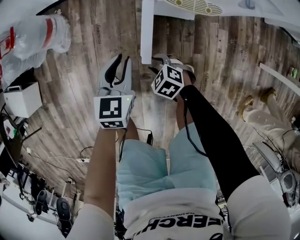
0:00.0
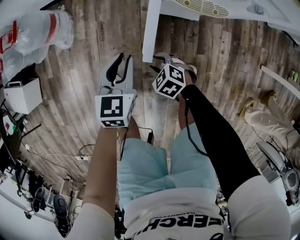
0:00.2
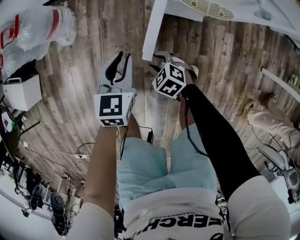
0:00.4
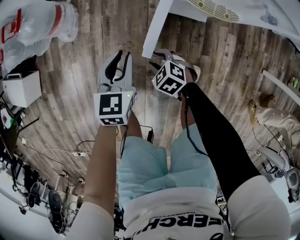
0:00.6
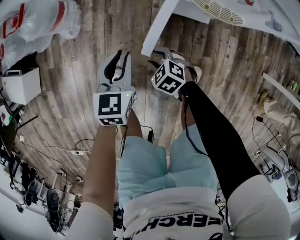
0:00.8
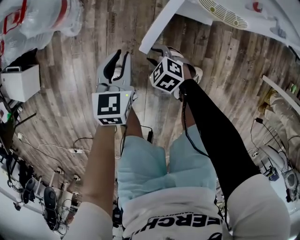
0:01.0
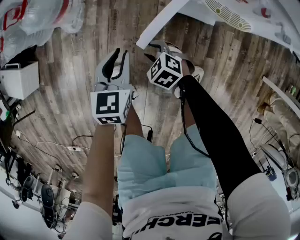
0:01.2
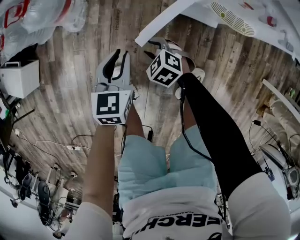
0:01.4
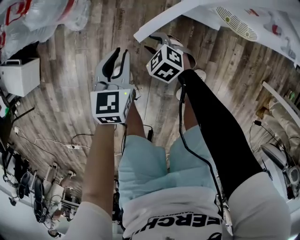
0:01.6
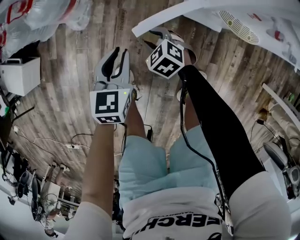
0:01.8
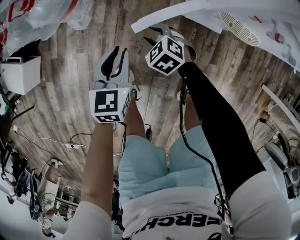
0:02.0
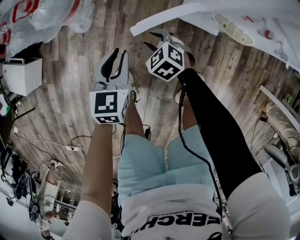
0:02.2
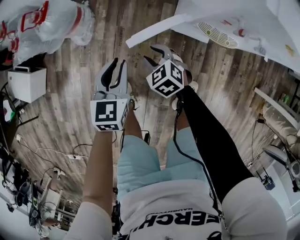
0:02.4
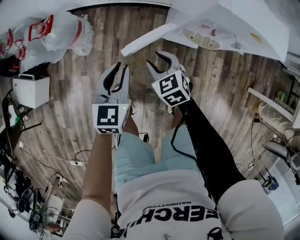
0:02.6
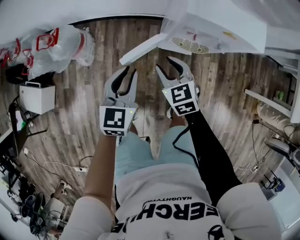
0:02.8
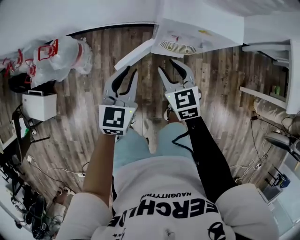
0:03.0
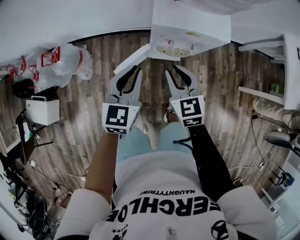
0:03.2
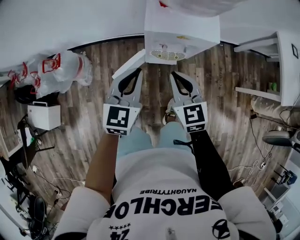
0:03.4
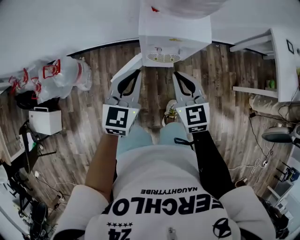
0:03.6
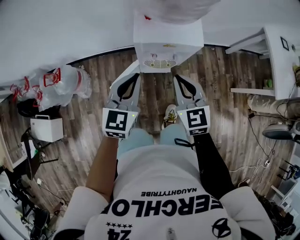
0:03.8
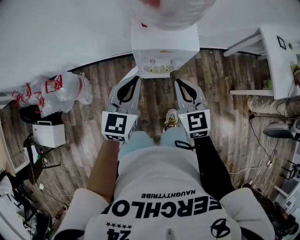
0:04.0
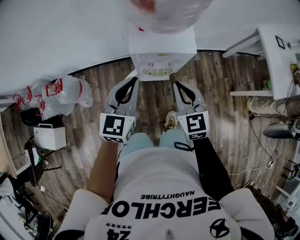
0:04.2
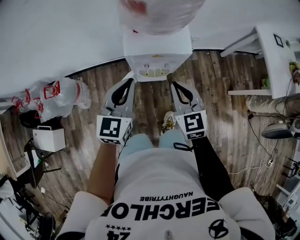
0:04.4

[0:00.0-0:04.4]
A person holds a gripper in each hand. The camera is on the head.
0:00.0 to 0:01.4: The right gripper travels forward and to the left by approximately 15 cm; the left gripper travels to the left and forward by approximately 15 cm.
0:01.4 to 0:03.0: Both grippers travel together upward, about 35 cm. The right gripper turns by roughly 50 degrees, while the left gripper turns by approximately 20 degrees.
0:03.0 to 0:04.4: Both grippers move upward and to the right, approximately 20 cm. The right gripper closes its fingers.

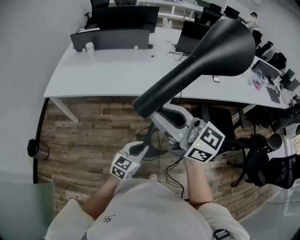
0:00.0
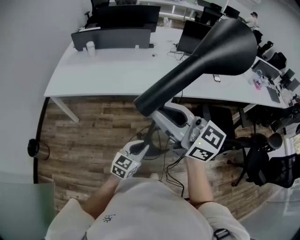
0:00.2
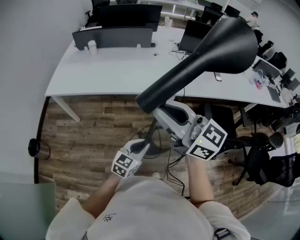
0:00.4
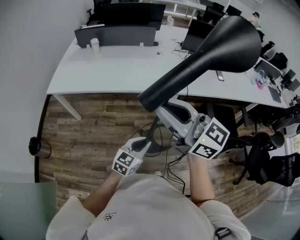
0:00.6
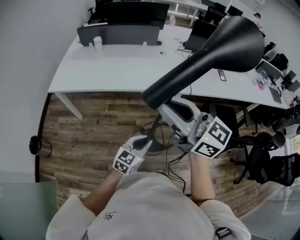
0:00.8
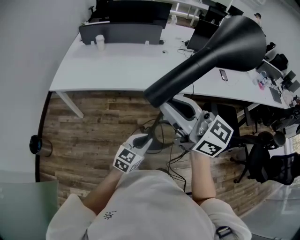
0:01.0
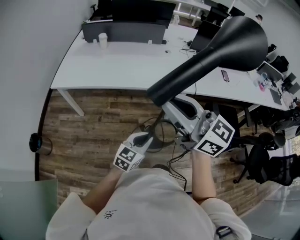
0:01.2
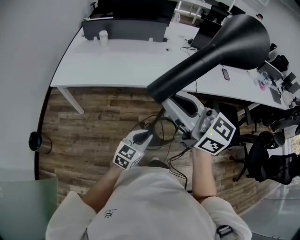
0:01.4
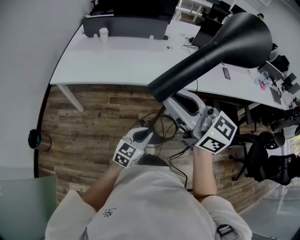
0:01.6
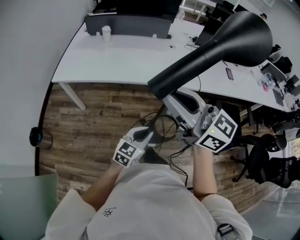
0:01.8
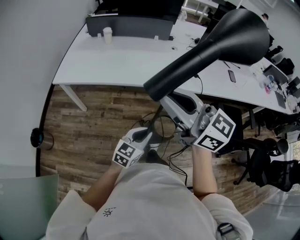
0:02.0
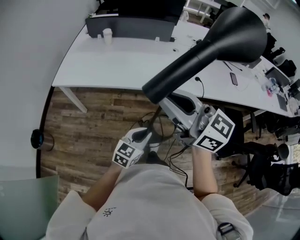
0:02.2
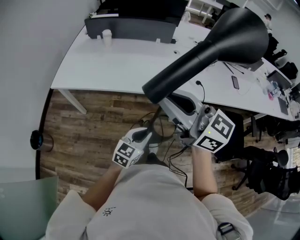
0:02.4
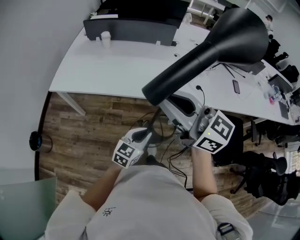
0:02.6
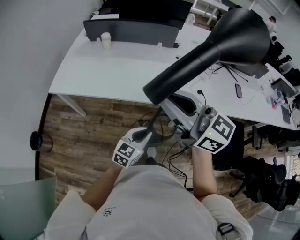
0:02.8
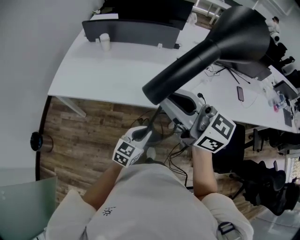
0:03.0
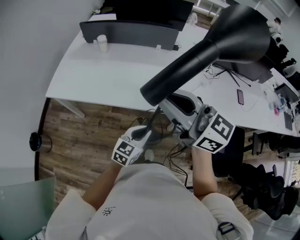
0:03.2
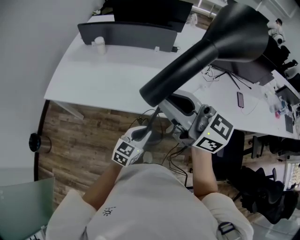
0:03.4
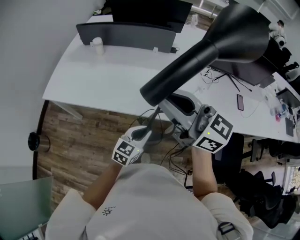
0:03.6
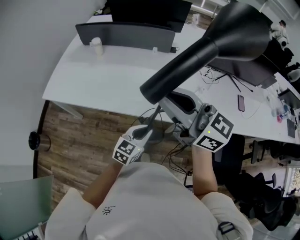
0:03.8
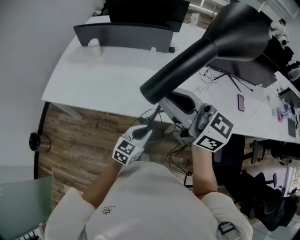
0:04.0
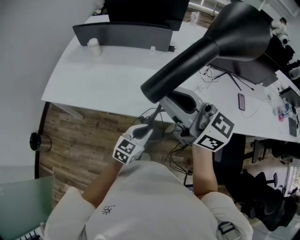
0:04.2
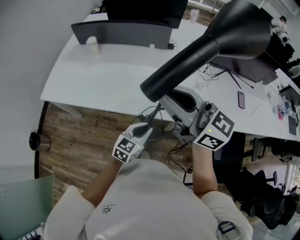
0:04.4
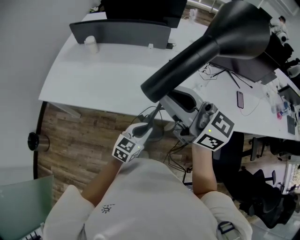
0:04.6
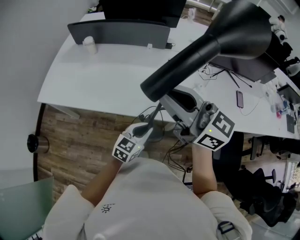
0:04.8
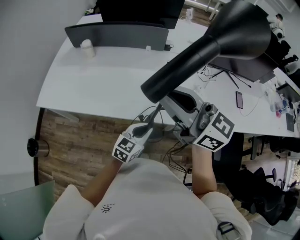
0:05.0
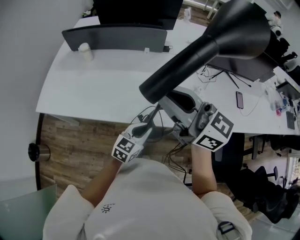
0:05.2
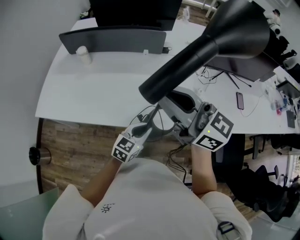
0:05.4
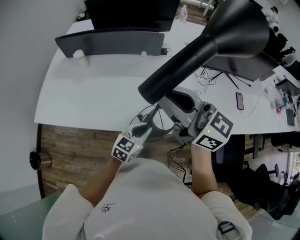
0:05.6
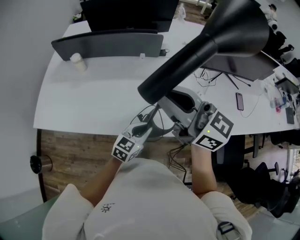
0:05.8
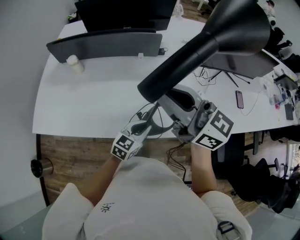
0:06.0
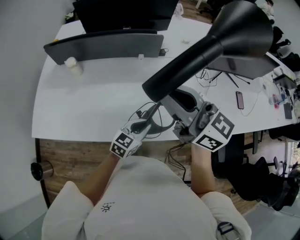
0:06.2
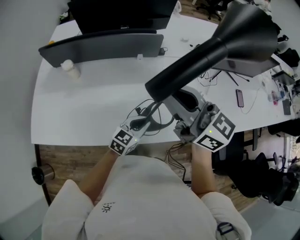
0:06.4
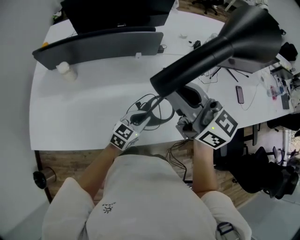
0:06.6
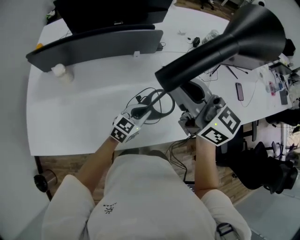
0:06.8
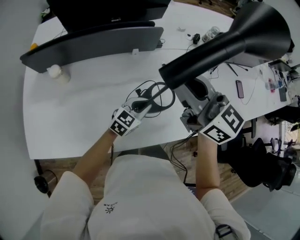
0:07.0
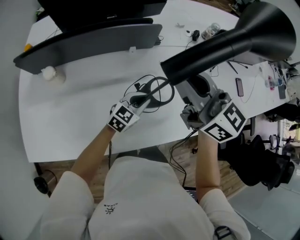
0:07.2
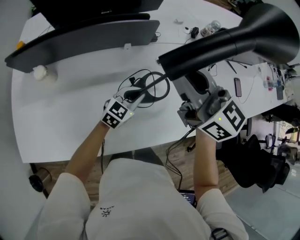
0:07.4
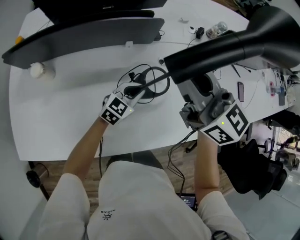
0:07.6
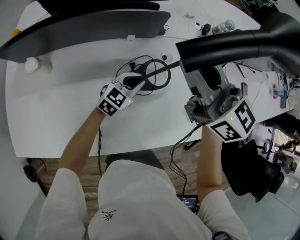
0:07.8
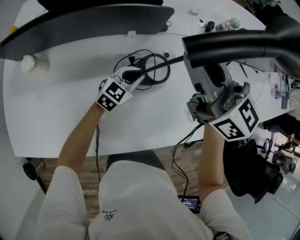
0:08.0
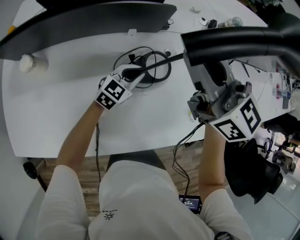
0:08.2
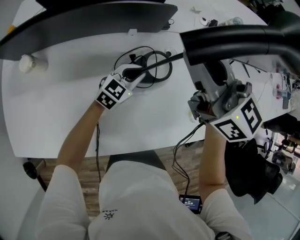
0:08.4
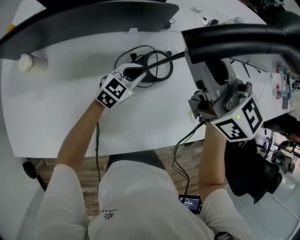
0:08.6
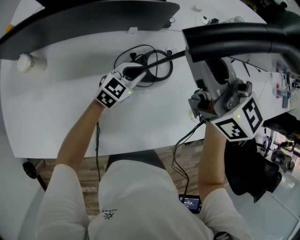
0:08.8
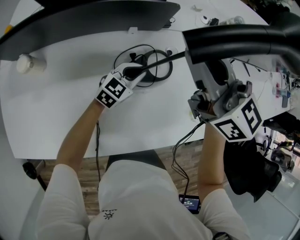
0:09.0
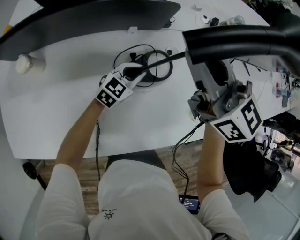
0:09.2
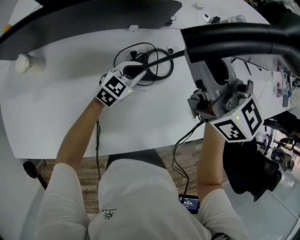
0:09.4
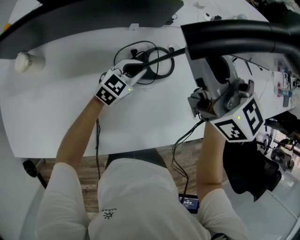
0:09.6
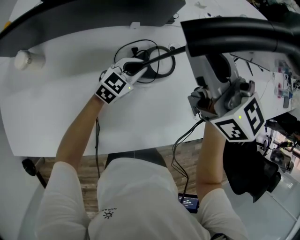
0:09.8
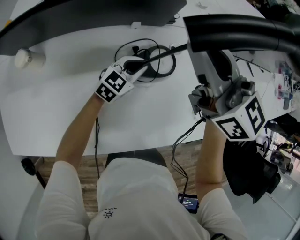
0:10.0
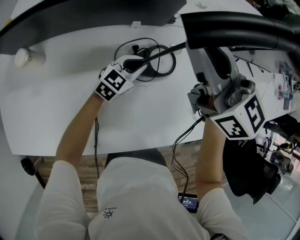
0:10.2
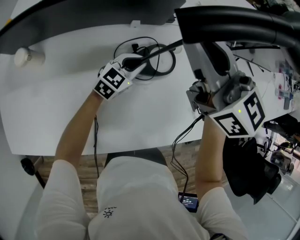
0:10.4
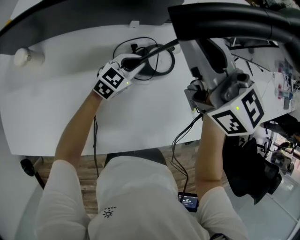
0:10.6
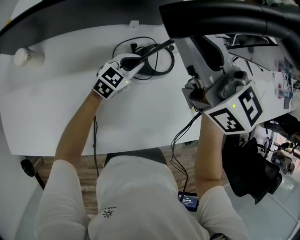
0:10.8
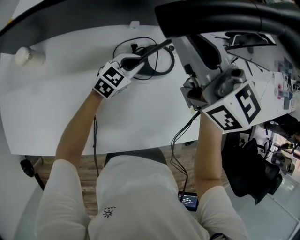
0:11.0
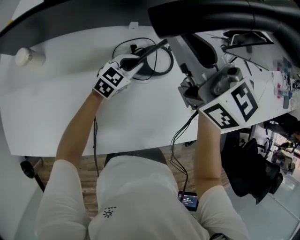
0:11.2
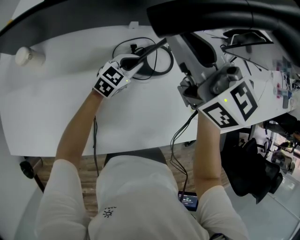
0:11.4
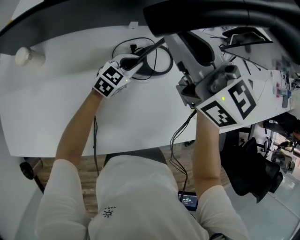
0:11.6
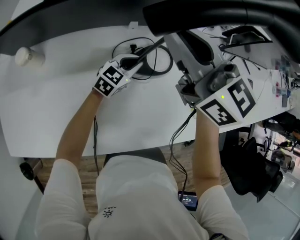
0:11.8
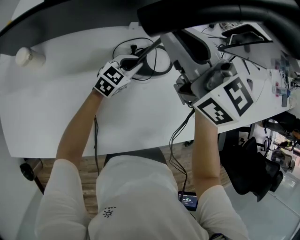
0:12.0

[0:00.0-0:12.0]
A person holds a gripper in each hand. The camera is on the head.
0:00.0 to 0:01.6: Both grippers move to the left, about 15 cm.
0:01.6 to 0:03.0: The grippers both shift forward by approximately 20 cm.
0:03.0 to 0:04.4: The two grippers go approximately 15 cm to the right and forward.
0:04.4 to 0:06.0: Both grippers move forward, approximately 15 cm.
0:06.0 to 0:07.6: The grippers both shift forward by about 25 cm. The right gripper turns by some 20 degrees.
0:07.6 to 0:09.0: The two grippers go about 5 cm forward.
0:09.0 to 0:12.0: The grippers stay close to where they were, moving slightly.

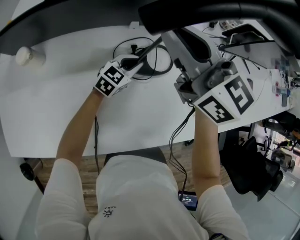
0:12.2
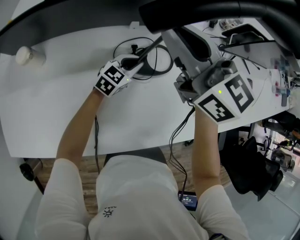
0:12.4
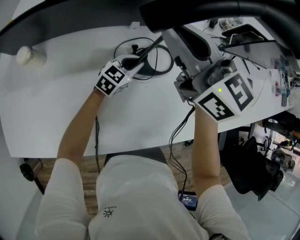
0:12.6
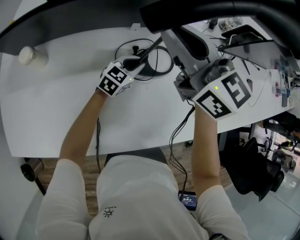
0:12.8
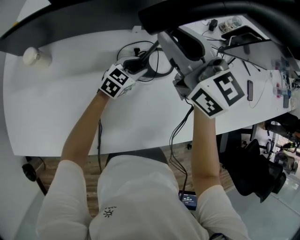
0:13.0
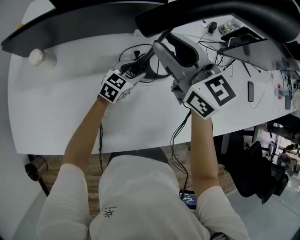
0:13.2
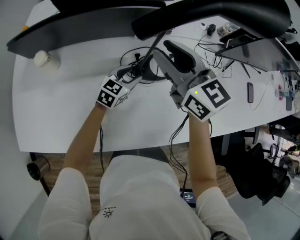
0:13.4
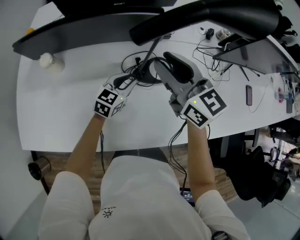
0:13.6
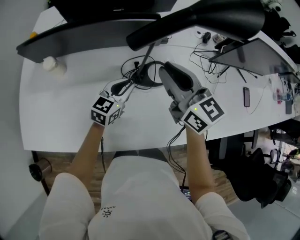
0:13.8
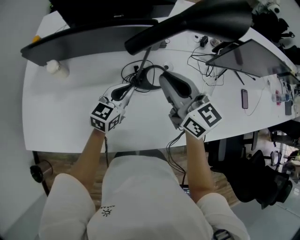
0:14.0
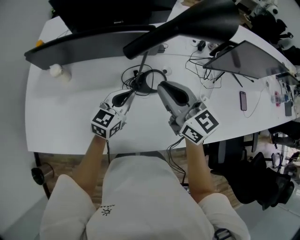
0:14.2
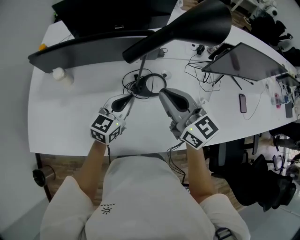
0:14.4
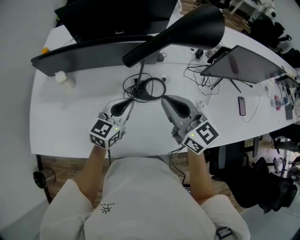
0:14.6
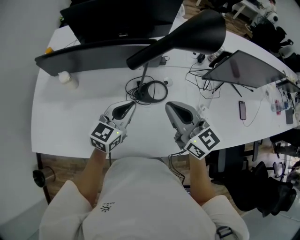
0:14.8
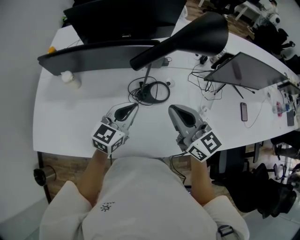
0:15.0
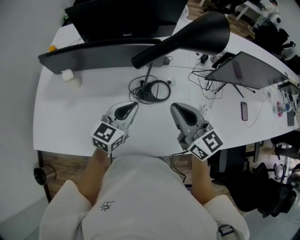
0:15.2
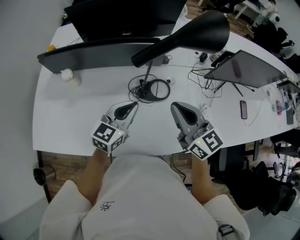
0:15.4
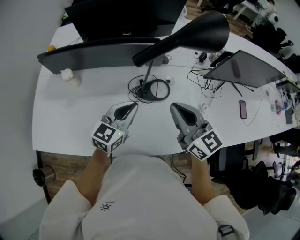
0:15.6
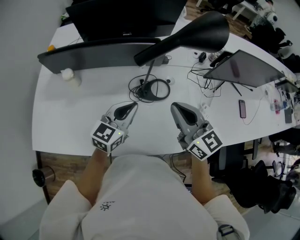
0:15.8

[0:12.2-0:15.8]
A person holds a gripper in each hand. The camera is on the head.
0:12.2 to 0:14.0: The right gripper shifts about 10 cm backward and to the right, and opens, then closes again. Meanwhile the left gripper shifts some 20 cm upward and backward, swivels about 20 degrees, and opens, then closes once more.
0:14.0 to 0:15.8: The right gripper shifts some 10 cm backward, while the left gripper moves upward and backward, some 10 cm.

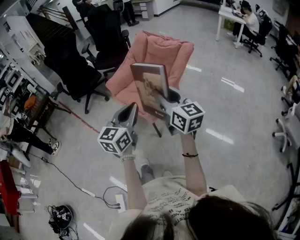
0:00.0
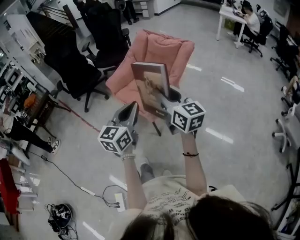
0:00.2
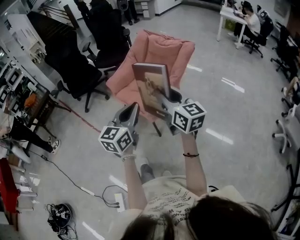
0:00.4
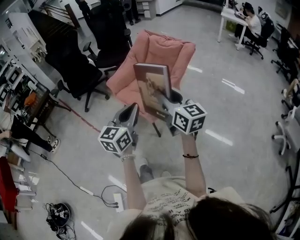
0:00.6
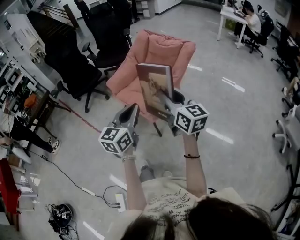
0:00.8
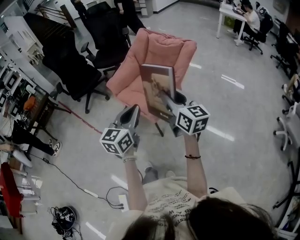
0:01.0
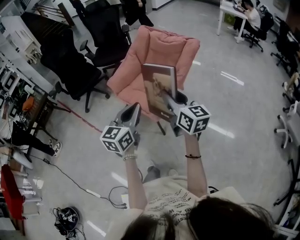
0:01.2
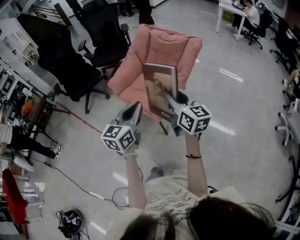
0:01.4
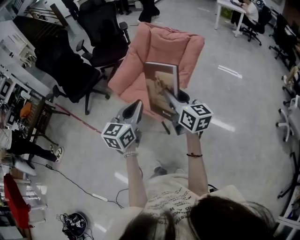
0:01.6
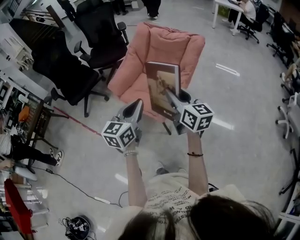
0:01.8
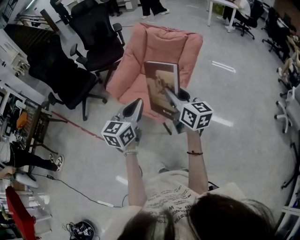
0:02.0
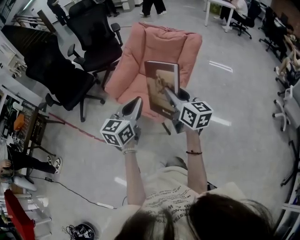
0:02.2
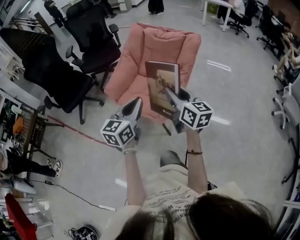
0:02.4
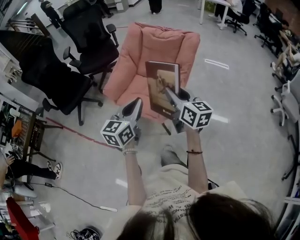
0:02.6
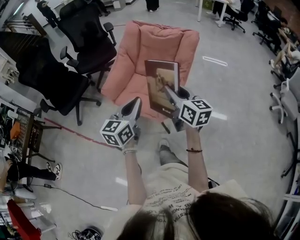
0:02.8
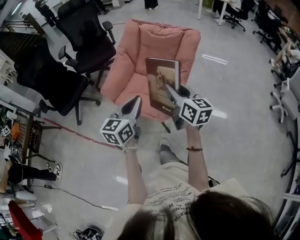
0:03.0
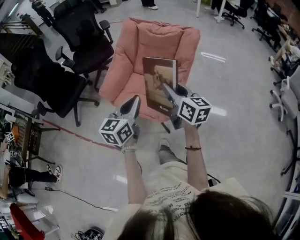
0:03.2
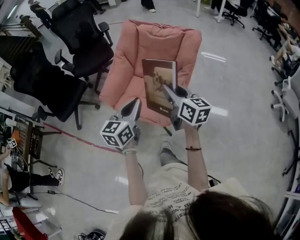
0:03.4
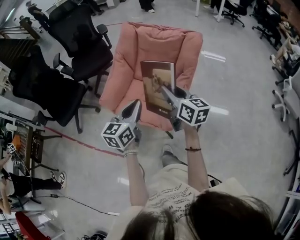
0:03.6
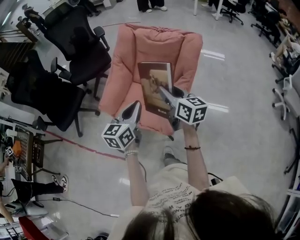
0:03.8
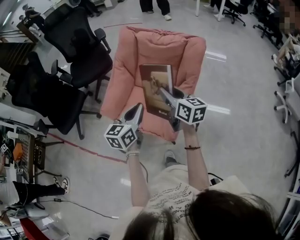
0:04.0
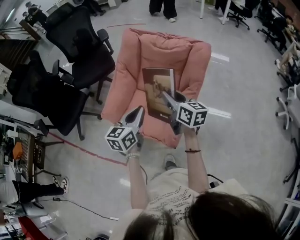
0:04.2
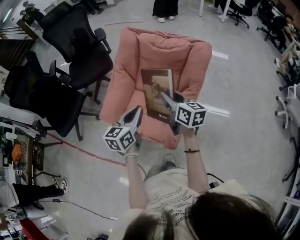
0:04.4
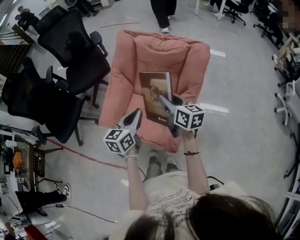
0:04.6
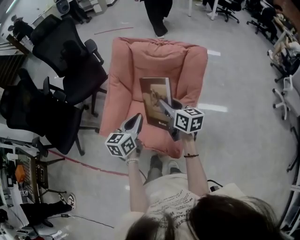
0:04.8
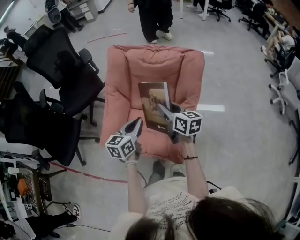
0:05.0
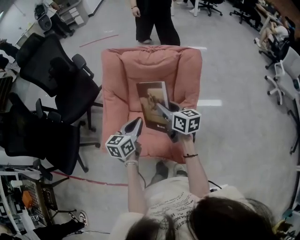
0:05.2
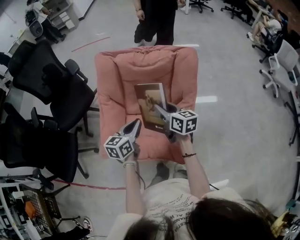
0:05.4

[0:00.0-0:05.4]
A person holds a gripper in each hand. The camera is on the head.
0:00.0 to 0:01.4: The left gripper is displaced forward and to the left by approximately 10 cm. Meanwhile the right gripper heads forward, covering approximately 10 cm.
0:01.4 to 0:02.8: Both grippers move forward and to the left, roughly 15 cm.
0:02.8 to 0:04.0: Both grippers travel together forward, some 20 cm.
0:04.0 to 0:05.4: Both grippers travel together forward and downward, approximately 20 cm. The left gripper rotates roughly 20 degrees.
